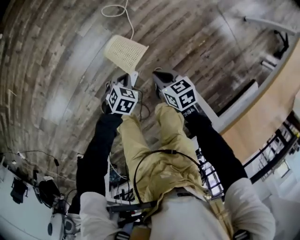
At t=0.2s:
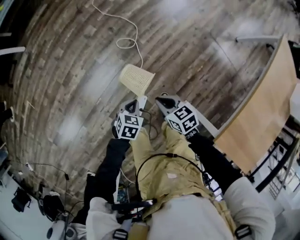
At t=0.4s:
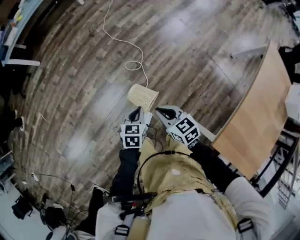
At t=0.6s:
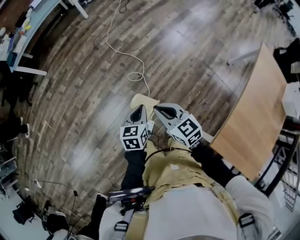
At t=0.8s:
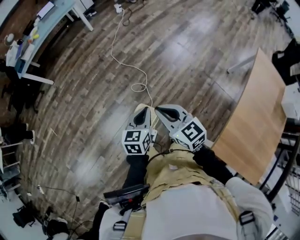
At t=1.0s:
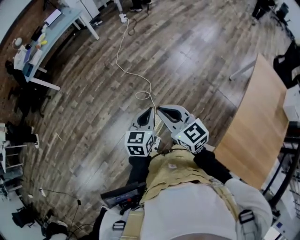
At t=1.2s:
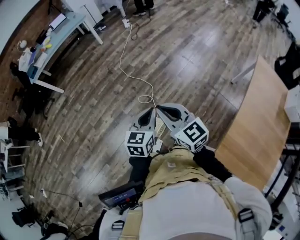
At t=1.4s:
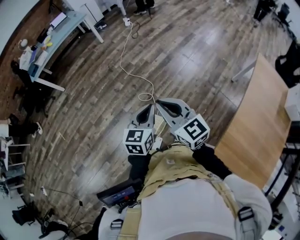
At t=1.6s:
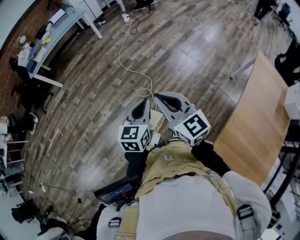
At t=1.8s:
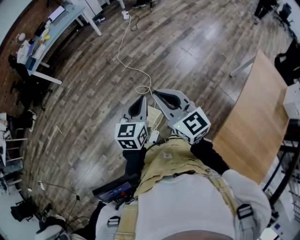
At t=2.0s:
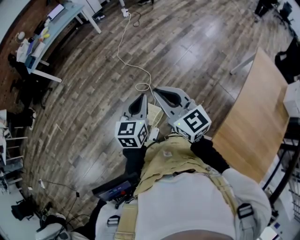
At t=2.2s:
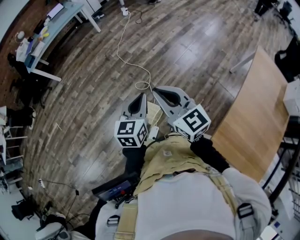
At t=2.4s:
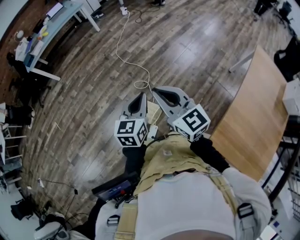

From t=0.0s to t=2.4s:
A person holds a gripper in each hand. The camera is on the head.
From t=0.0s to t=1.2s: The two grippers go roughly 60 cm upward. The left gripper angles its fingers upward, by about 50 degrees. The right gripper points its fingers approximately 40 degrees further upward.
From t=1.2s to t=2.4s: The grippers move only a little.

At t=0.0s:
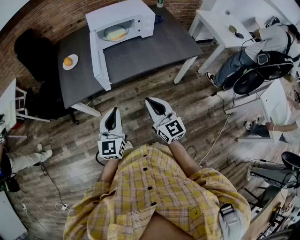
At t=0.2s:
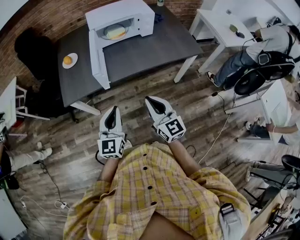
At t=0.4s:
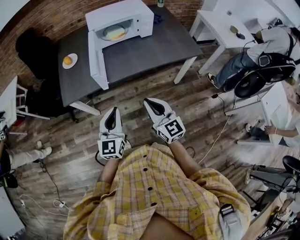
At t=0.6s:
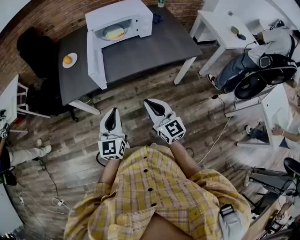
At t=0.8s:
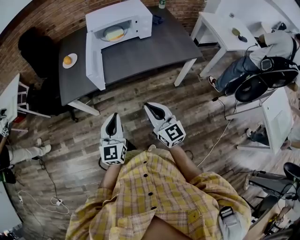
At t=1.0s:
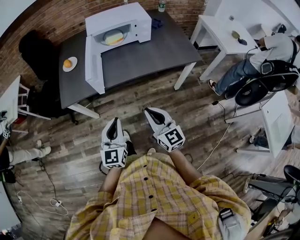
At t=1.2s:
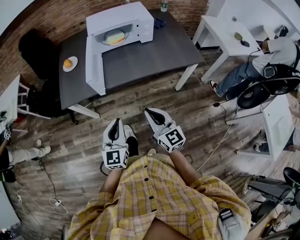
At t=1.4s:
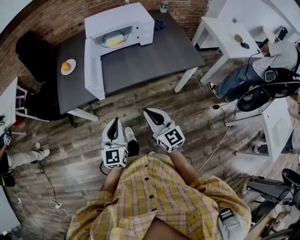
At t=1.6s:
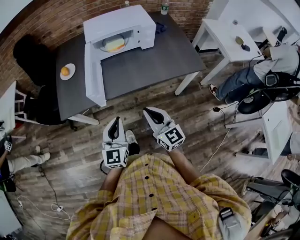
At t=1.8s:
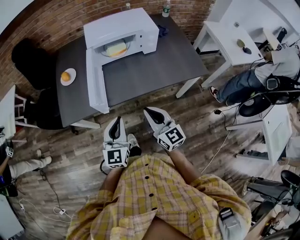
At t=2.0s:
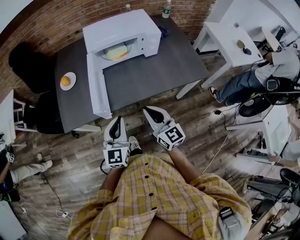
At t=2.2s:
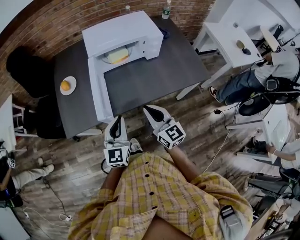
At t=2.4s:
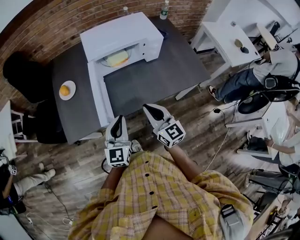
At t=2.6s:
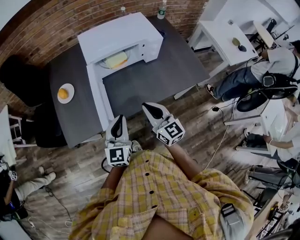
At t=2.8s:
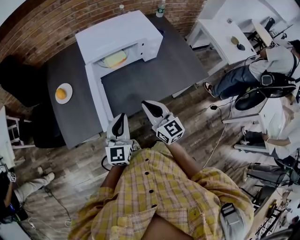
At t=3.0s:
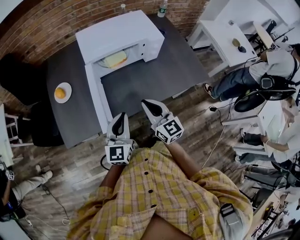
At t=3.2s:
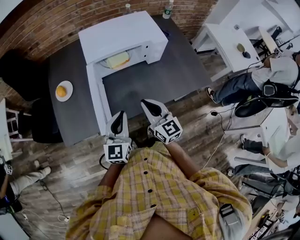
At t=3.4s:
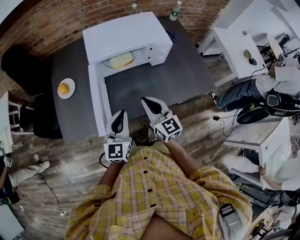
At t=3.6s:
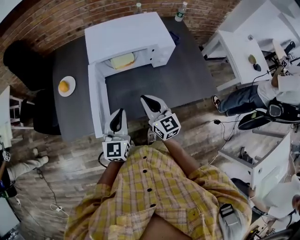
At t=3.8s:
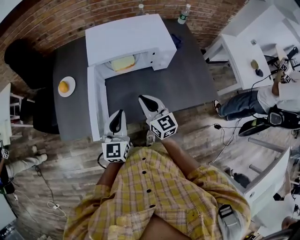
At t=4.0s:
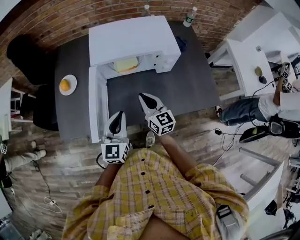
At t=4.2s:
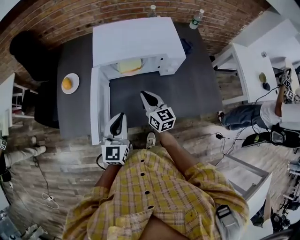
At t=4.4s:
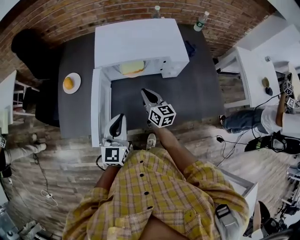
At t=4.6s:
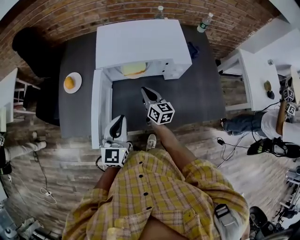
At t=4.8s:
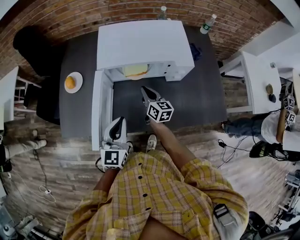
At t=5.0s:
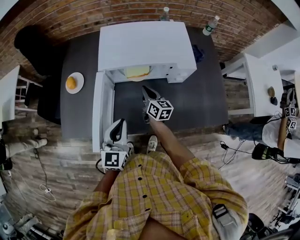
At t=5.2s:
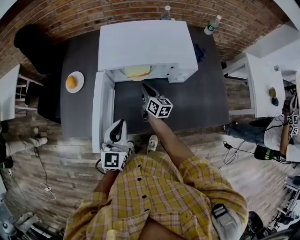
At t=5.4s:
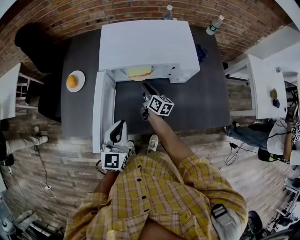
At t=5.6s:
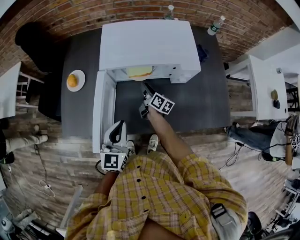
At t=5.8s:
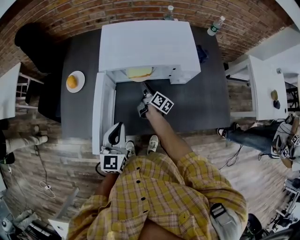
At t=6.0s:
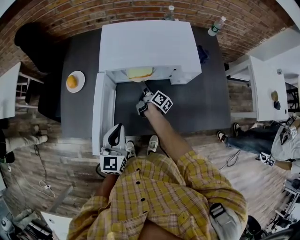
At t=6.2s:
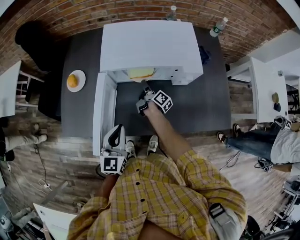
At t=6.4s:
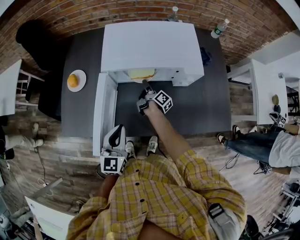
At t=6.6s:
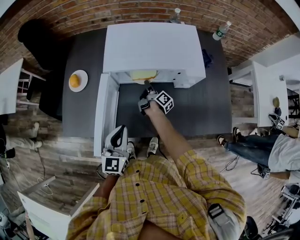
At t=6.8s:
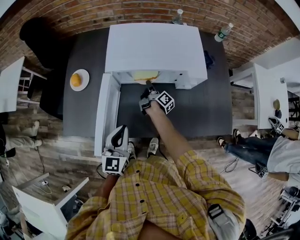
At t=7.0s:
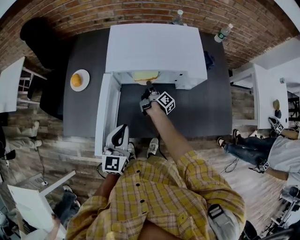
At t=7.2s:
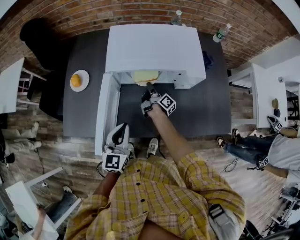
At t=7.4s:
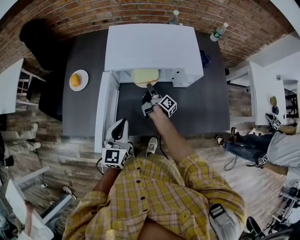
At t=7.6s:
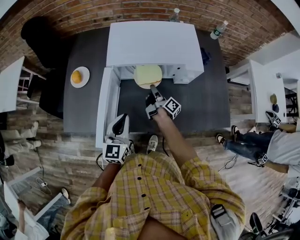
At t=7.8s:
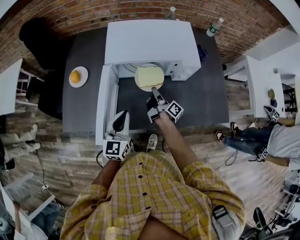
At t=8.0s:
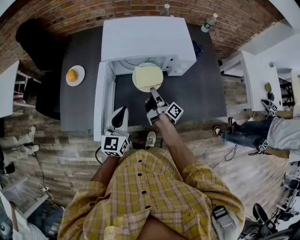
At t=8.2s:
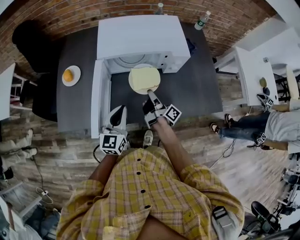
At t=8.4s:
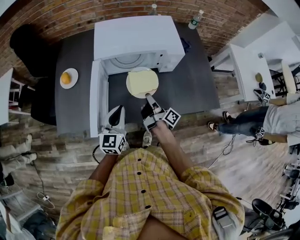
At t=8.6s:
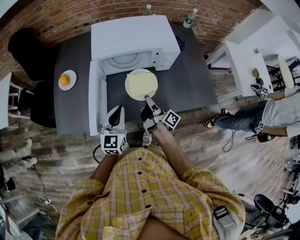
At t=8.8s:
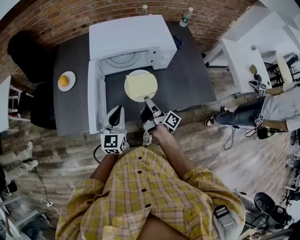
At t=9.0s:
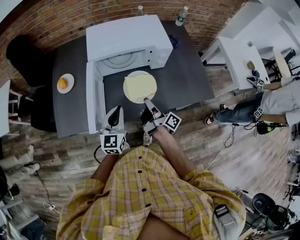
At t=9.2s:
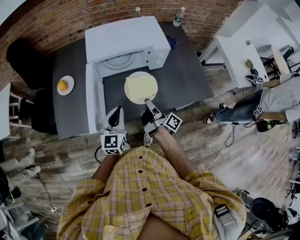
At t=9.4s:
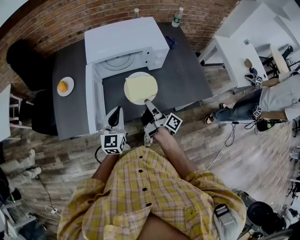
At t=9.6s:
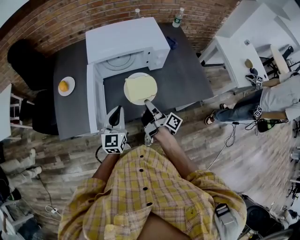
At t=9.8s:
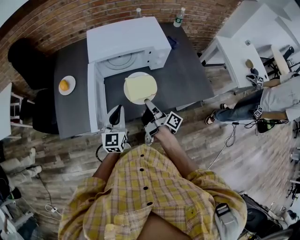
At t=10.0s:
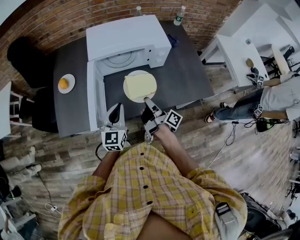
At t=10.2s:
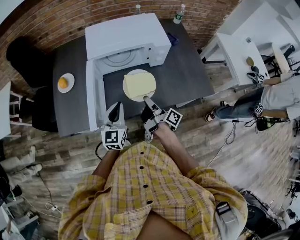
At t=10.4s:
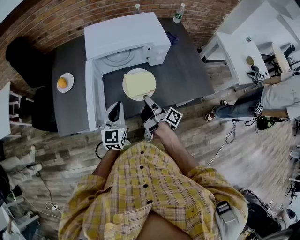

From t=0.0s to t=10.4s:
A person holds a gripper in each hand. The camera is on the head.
From t=0.0s to t=1.4s: Both grippers move to the right, some 5 cm.
From t=1.4s to t=3.0s: Both grippers travel together forward, roughly 25 cm.
From t=3.0s to t=4.4s: The right gripper travels forward and downward by some 20 cm, and turns by approximately 20 degrees, while the left gripper is displaced forward by roughly 10 cm.
From t=4.4s to t=6.0s: The right gripper travels downward and forward by approximately 15 cm, twists some 50 degrees clockwise, seen from behind, and opens its fingers.
From t=6.0s to t=7.4s: The right gripper closes up.
From t=7.4s to t=9.0s: The left gripper shifts some 5 cm backward. Meanwhile the right gripper is displaced backward and upward by approximately 25 cm.
From t=9.0s to t=10.4s: The two grippers keep their place.

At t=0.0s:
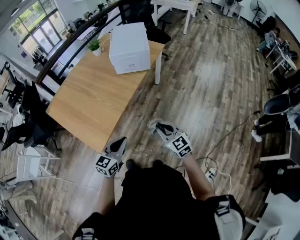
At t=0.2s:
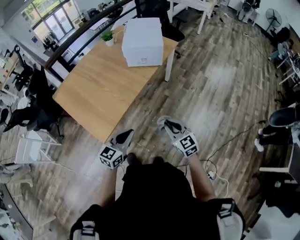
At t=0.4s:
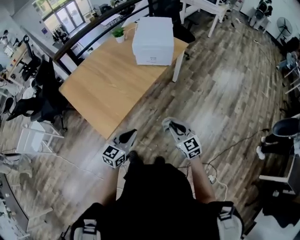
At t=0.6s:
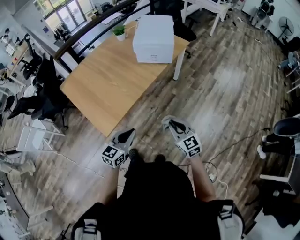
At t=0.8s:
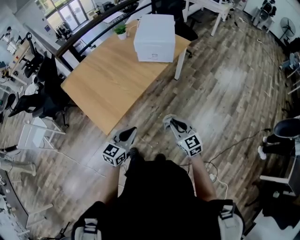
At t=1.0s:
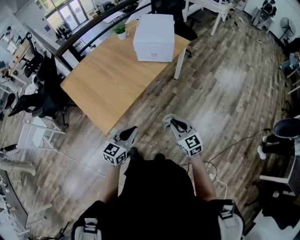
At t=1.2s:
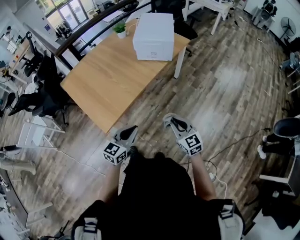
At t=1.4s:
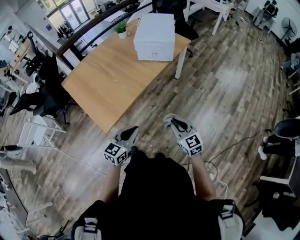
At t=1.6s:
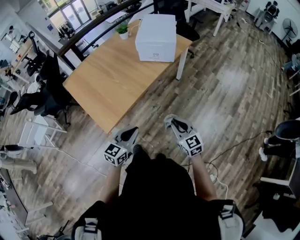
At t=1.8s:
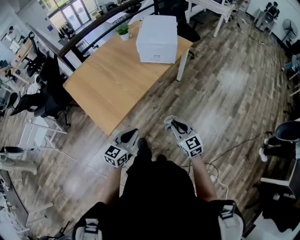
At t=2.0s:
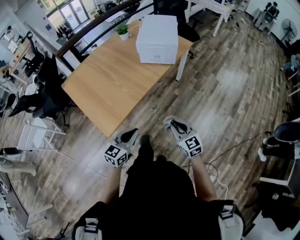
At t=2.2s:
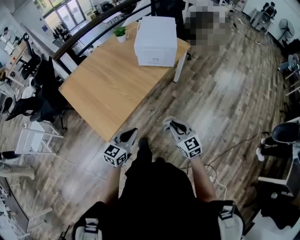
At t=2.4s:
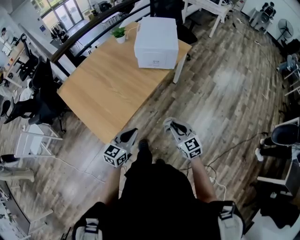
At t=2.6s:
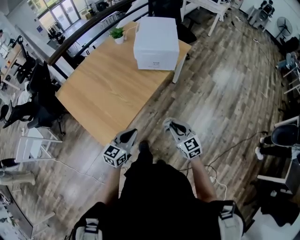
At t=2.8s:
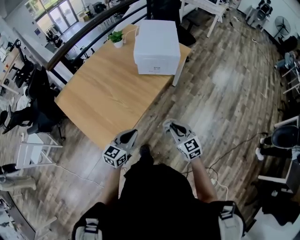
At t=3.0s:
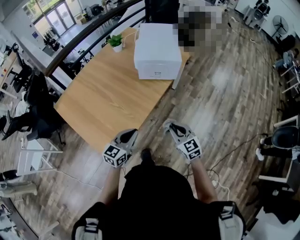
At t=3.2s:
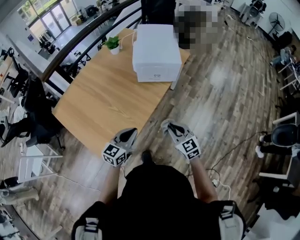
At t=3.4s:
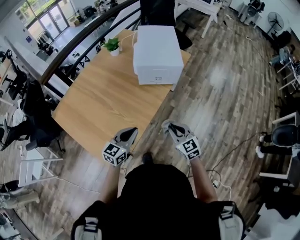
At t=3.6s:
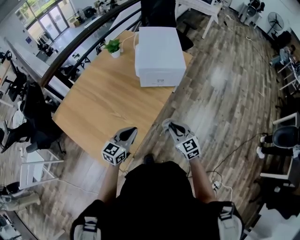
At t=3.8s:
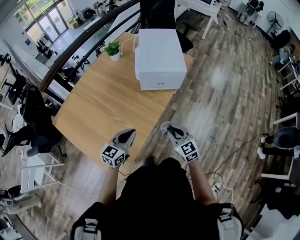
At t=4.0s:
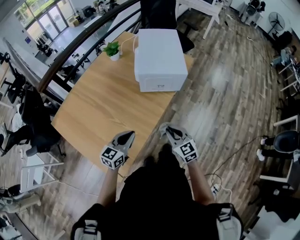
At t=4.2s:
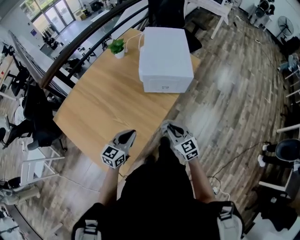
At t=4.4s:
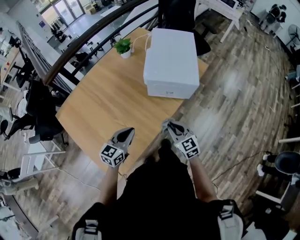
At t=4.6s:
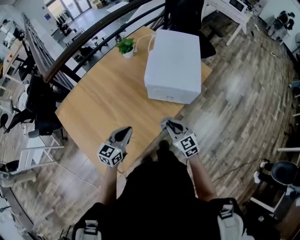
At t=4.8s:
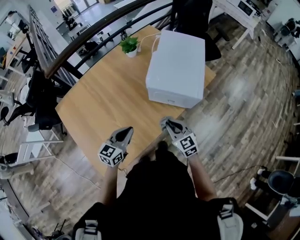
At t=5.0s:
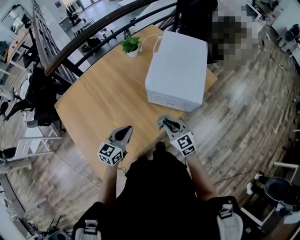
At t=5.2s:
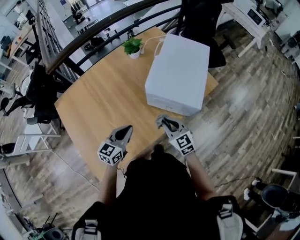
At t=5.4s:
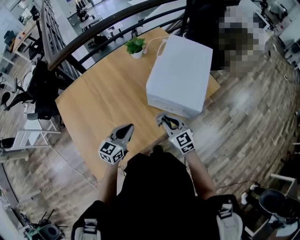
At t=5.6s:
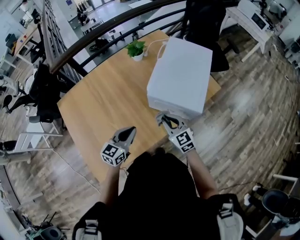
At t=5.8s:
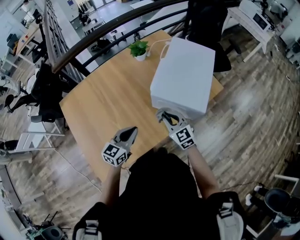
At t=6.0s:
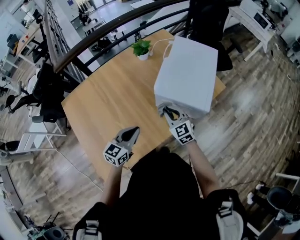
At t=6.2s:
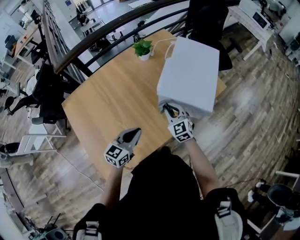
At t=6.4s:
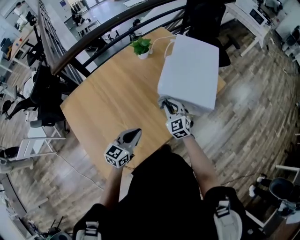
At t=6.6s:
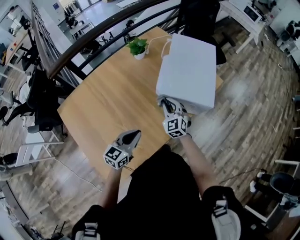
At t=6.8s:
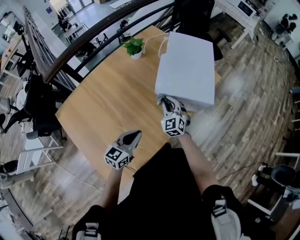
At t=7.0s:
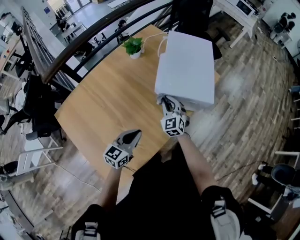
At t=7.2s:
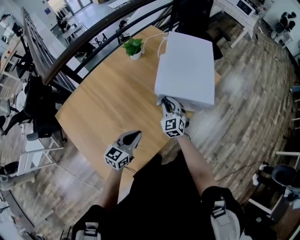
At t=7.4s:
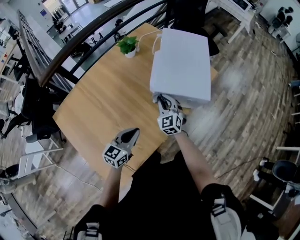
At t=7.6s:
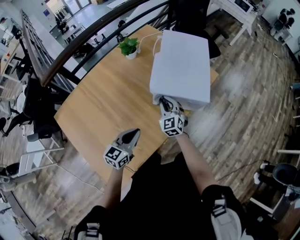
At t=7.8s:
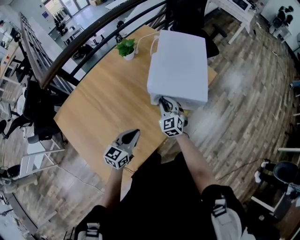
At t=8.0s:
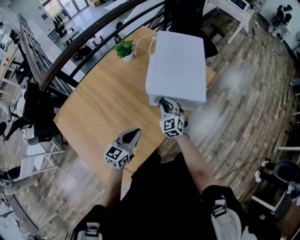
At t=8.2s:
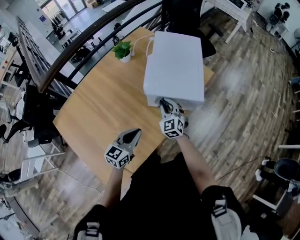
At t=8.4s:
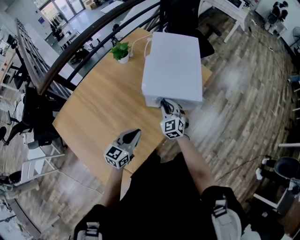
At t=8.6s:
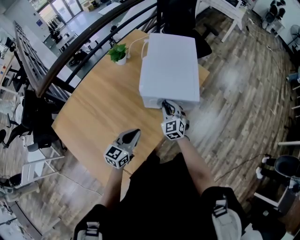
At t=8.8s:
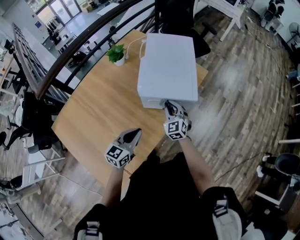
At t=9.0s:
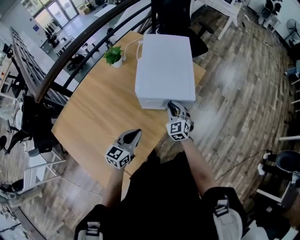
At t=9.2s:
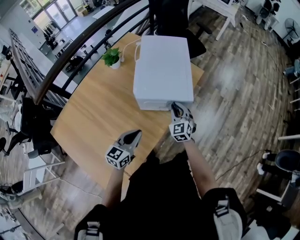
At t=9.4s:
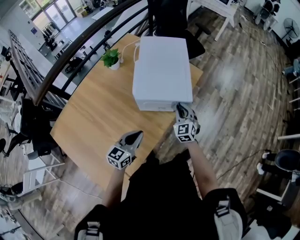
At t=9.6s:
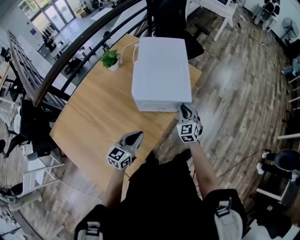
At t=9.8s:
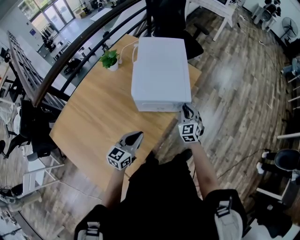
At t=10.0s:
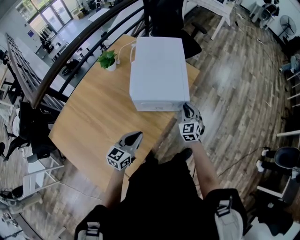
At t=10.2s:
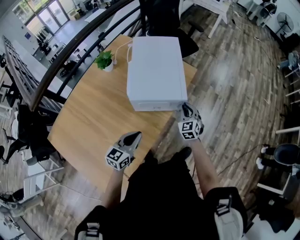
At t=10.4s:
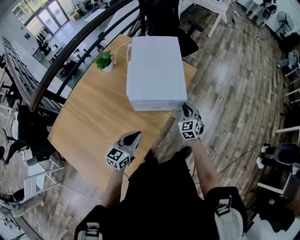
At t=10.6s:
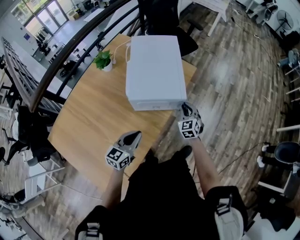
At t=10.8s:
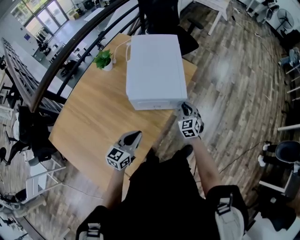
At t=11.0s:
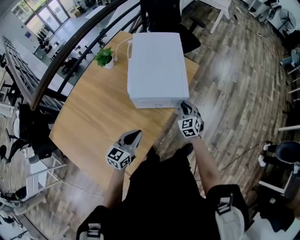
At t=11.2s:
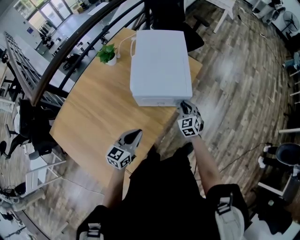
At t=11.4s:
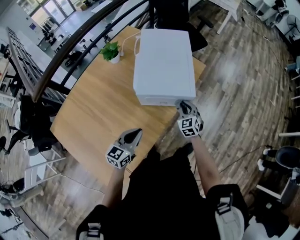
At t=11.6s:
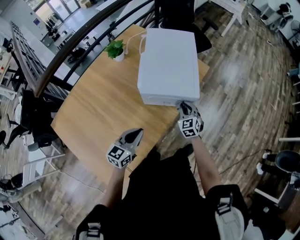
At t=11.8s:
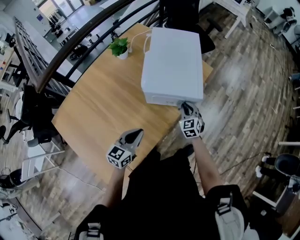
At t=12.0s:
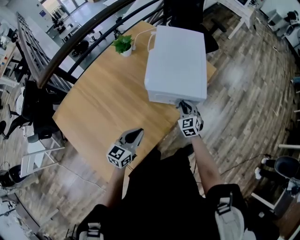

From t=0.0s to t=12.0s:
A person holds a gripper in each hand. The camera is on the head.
From t=0.0s to t=1.6s: There are only small adjustments of the grippers.
From t=1.6s to t=3.0s: Both grippers move forward and to the left, about 20 cm.
From t=3.0s to t=4.4s: The grippers both shift forward by about 20 cm.
From t=4.4s to t=6.0s: The left gripper moves forward, approximately 10 cm. Meanwhile the right gripper moves forward, roughly 20 cm.
From t=6.0s to t=7.6s: The right gripper moves approximately 5 cm, and turns by some 20 degrees.
From t=7.6s to t=9.0s: The right gripper travels to the right by some 10 cm; the left gripper moves to the right, some 5 cm.
From t=9.0s to t=10.4s: The right gripper heads to the right, covering about 15 cm.
From t=10.4s to t=12.0s: The left gripper changes place by roughly 5 cm. Meanwhile the right gripper travels to the left by some 10 cm.
